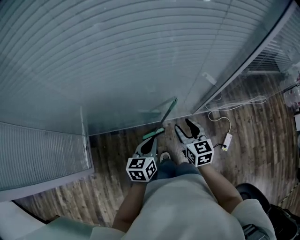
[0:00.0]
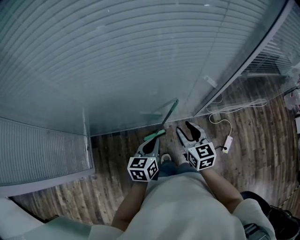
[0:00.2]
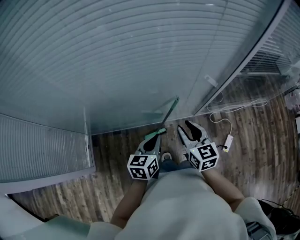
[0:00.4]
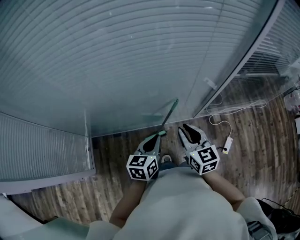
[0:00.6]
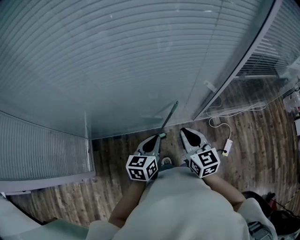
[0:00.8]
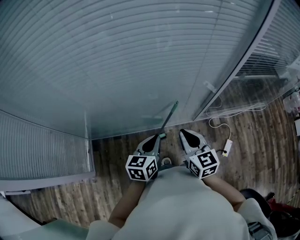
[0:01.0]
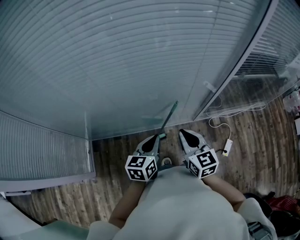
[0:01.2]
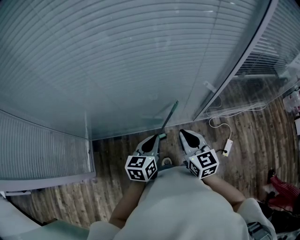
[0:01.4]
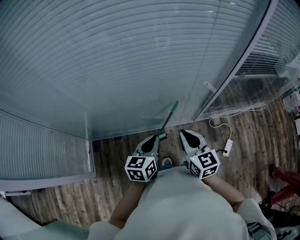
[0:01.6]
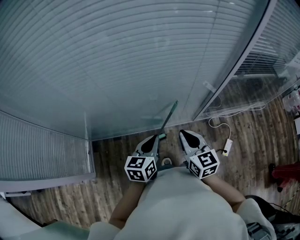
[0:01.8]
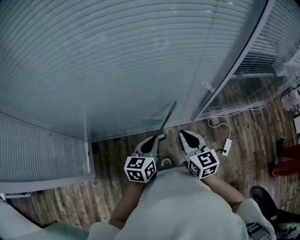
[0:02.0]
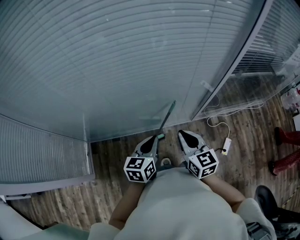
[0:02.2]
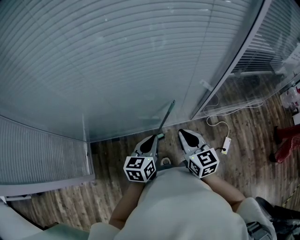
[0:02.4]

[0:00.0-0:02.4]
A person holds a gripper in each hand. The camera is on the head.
0:00.0 to 0:01.2: The left gripper travels upward by some 5 cm. The right gripper heads upward and backward, covering roughly 10 cm, and closes up.
0:01.2 to 0:02.4: The two grippers keep their place.

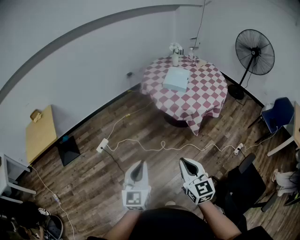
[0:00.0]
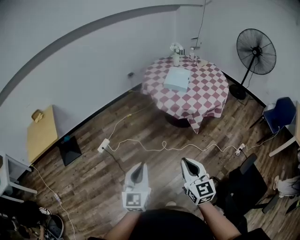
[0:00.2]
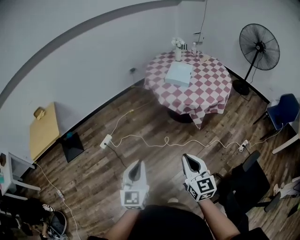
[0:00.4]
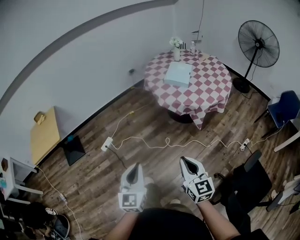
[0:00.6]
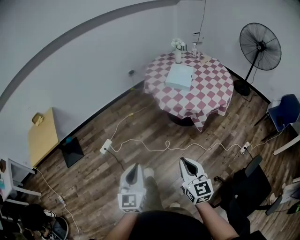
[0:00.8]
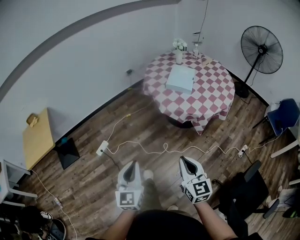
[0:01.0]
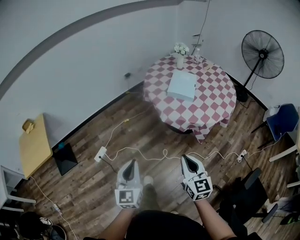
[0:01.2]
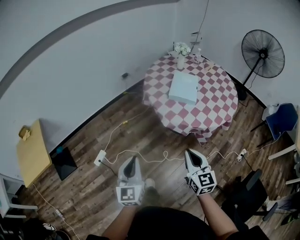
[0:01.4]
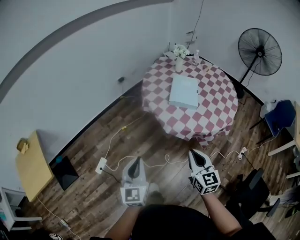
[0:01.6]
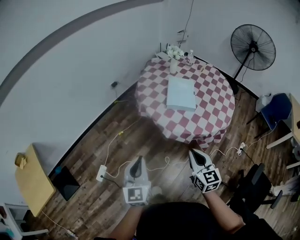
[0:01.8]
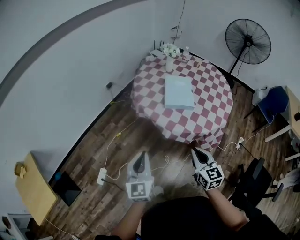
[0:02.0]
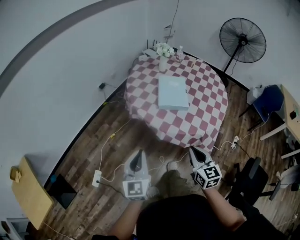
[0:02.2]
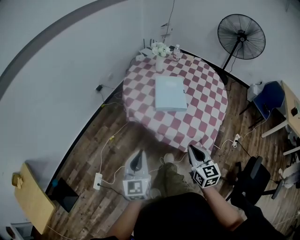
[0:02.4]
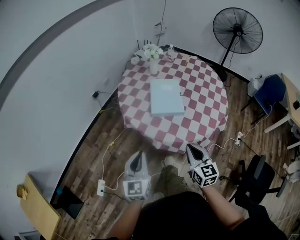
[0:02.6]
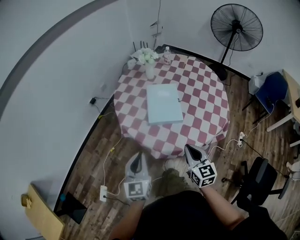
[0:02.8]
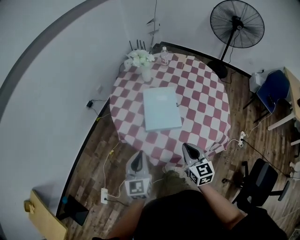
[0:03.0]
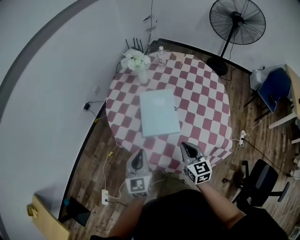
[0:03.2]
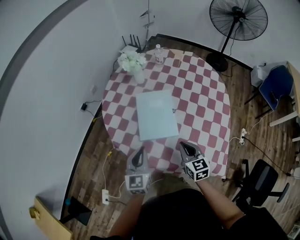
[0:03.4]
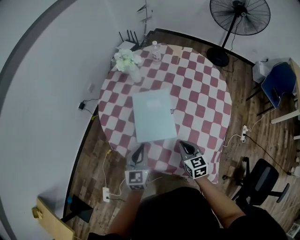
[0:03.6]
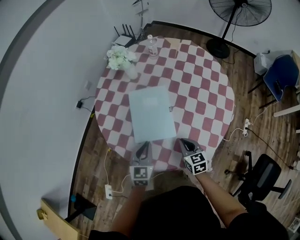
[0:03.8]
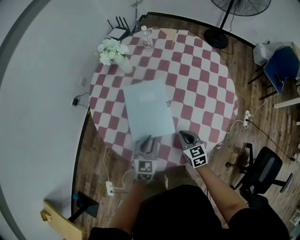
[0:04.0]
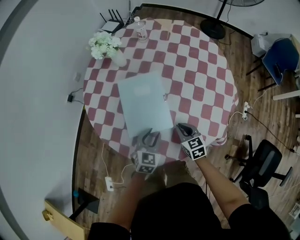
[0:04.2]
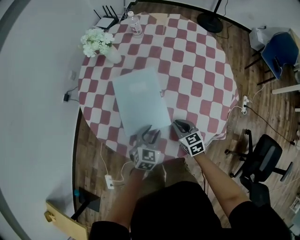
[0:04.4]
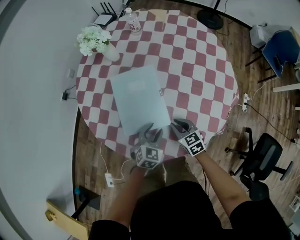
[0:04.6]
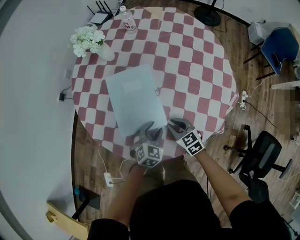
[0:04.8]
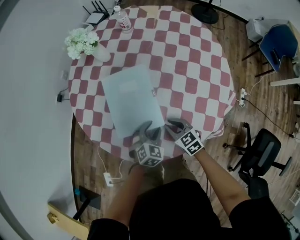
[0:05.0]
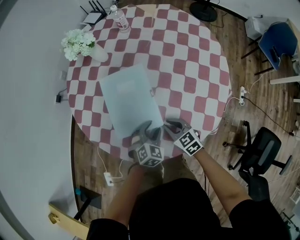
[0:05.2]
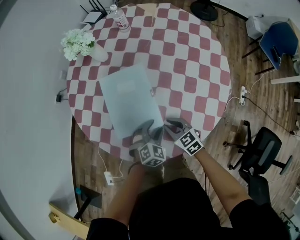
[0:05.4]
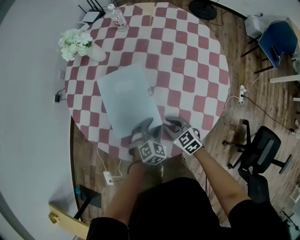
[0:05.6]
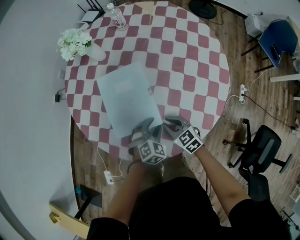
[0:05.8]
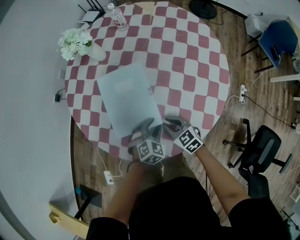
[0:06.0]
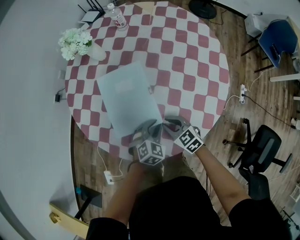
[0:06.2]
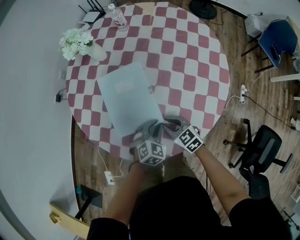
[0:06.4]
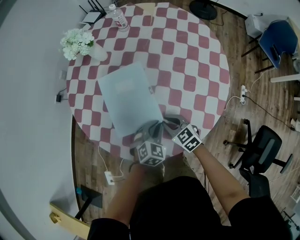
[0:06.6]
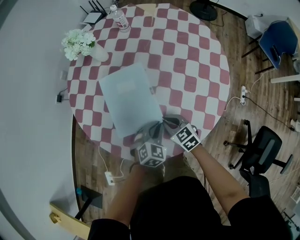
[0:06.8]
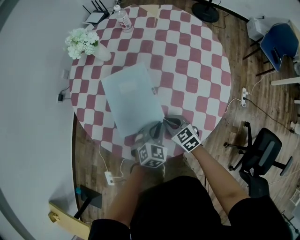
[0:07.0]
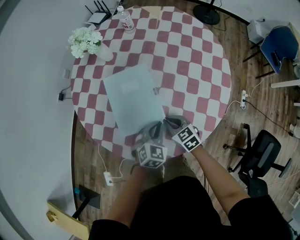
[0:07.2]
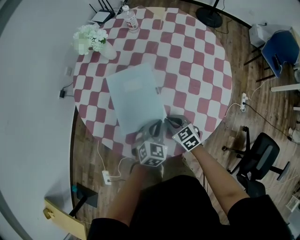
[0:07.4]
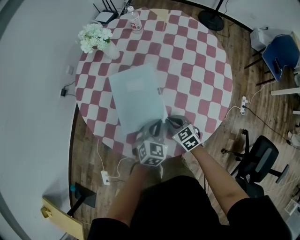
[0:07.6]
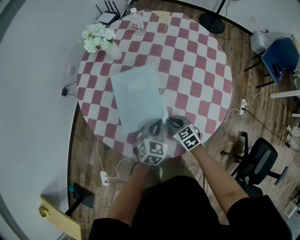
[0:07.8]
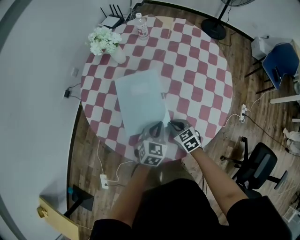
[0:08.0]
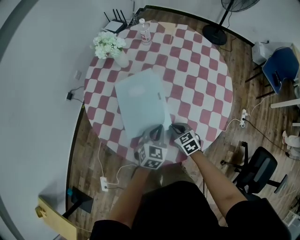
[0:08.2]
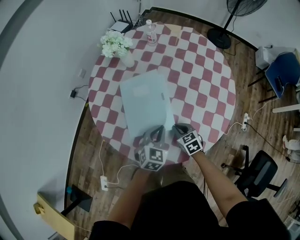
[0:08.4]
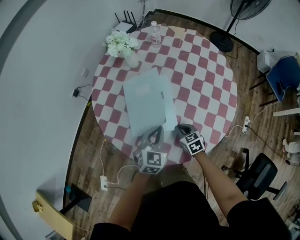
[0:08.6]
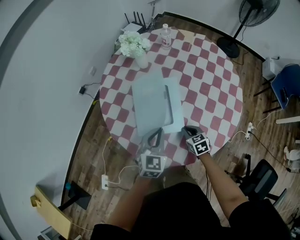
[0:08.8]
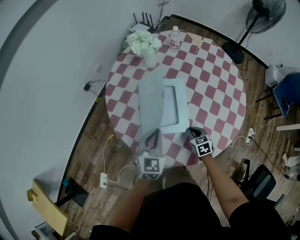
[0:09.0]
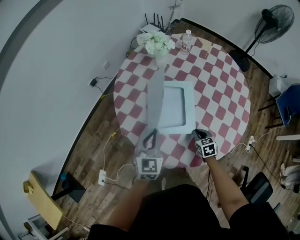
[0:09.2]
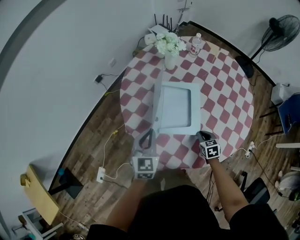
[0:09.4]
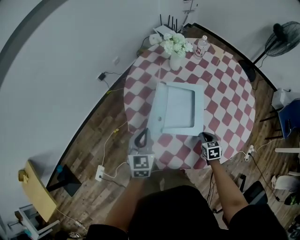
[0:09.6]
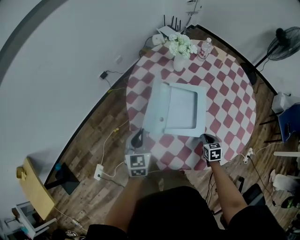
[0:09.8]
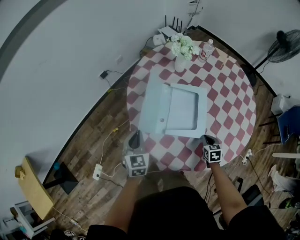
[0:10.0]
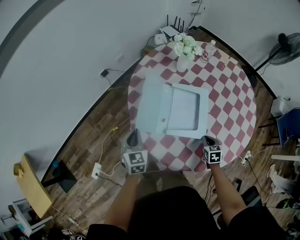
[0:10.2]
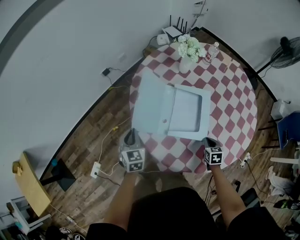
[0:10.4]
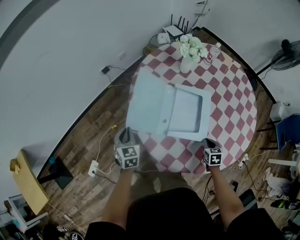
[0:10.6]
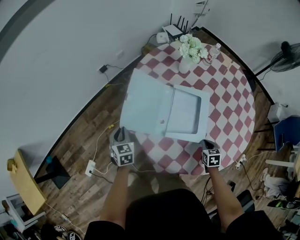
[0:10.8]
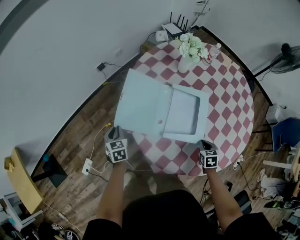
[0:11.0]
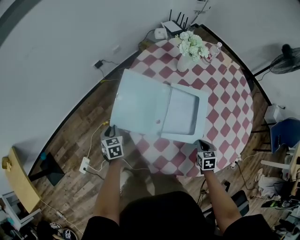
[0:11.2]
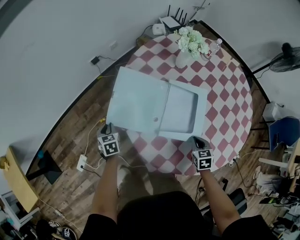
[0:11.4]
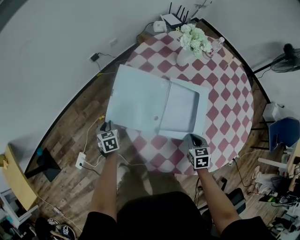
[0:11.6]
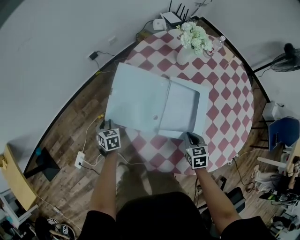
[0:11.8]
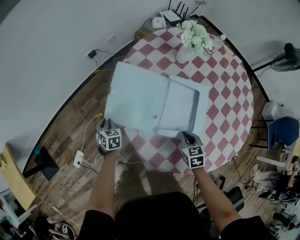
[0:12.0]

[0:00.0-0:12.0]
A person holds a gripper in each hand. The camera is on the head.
0:00.0 to 0:01.6: The two grippers go approximately 40 cm forward.
0:01.6 to 0:03.0: The grippers both shift forward by roughly 35 cm.
0:03.0 to 0:04.4: The left gripper heads downward, forward and to the right, covering about 35 cm, points its fingers about 30 degrees further downward, and opens. The right gripper shifts some 30 cm downward and forward, and turns by some 20 degrees.
0:04.4 to 0:06.0: The left gripper goes about 5 cm to the right, and rotates approximately 20 degrees.
0:06.0 to 0:07.6: The left gripper goes some 10 cm upward, and closes its fingers.
0:07.6 to 0:09.0: The left gripper goes approximately 20 cm to the left and upward, and rotates roughly 30 degrees.
0:09.0 to 0:10.4: The left gripper shifts approximately 25 cm to the left, and turns by about 30 degrees.
0:10.4 to 0:12.0: The right gripper moves to the left and forward, some 10 cm. Meanwhile the left gripper is displaced downward and to the left by approximately 20 cm, and swivels about 20 degrees.

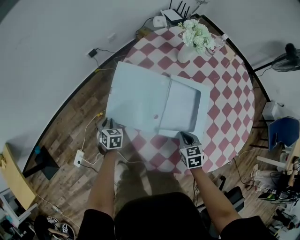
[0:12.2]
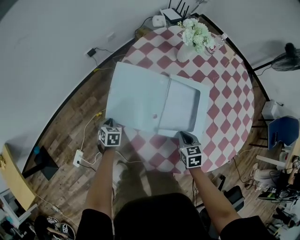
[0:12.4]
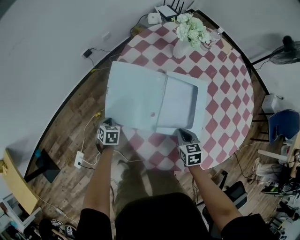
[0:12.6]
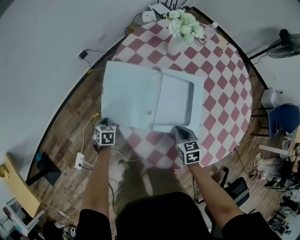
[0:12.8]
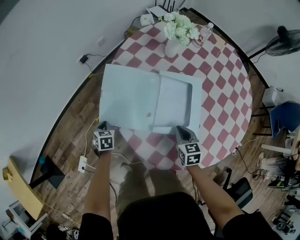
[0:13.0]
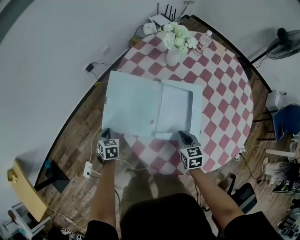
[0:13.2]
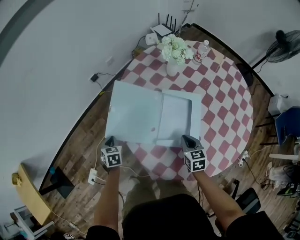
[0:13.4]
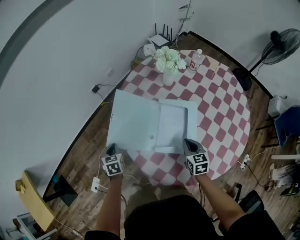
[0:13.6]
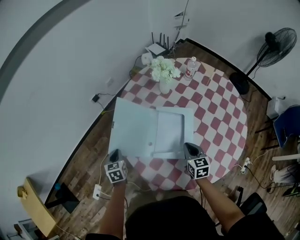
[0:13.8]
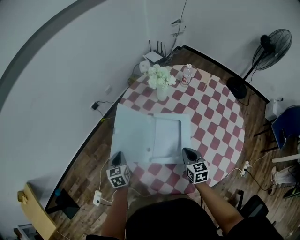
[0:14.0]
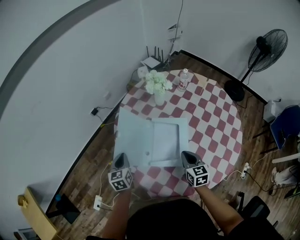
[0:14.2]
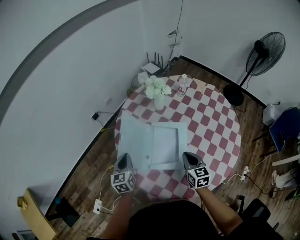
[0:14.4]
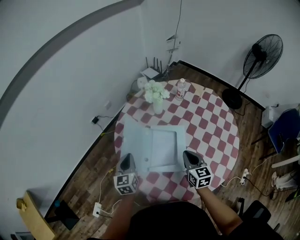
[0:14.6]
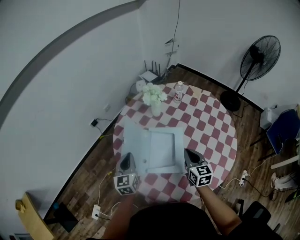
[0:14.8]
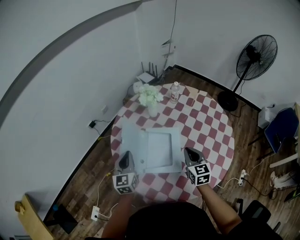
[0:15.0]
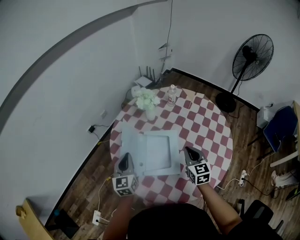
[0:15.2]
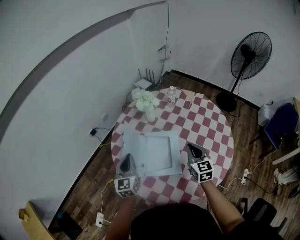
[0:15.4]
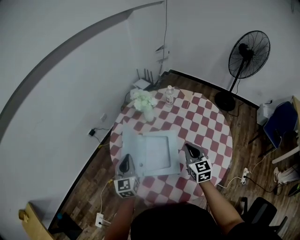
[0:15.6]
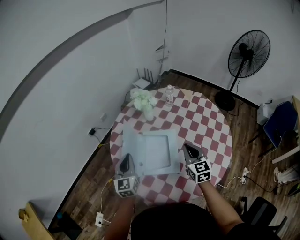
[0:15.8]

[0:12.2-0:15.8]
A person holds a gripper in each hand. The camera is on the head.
0:12.2 to 0:14.0: Both grippers move upward and to the right, roughly 20 cm. The left gripper turns by roughly 30 degrees. The right gripper turns by some 20 degrees.
0:14.0 to 0:15.8: The grippers both shift upward and to the right by roughly 20 cm. The left gripper changes its angle by approximately 30 degrees.

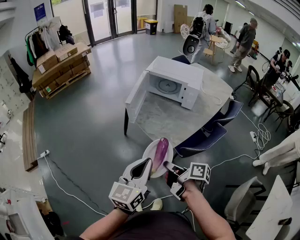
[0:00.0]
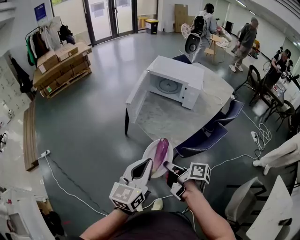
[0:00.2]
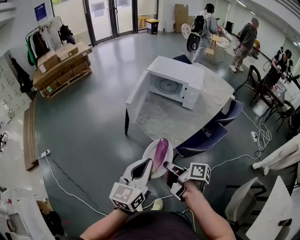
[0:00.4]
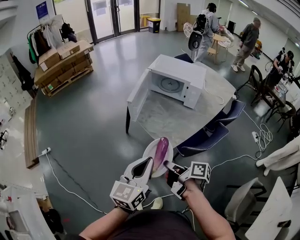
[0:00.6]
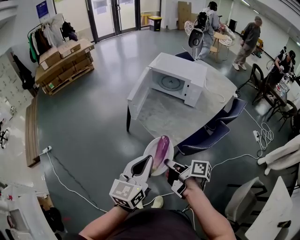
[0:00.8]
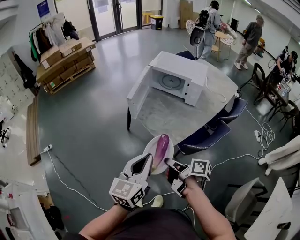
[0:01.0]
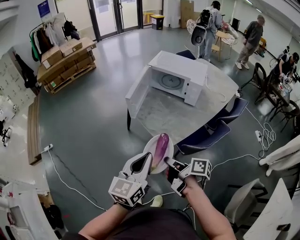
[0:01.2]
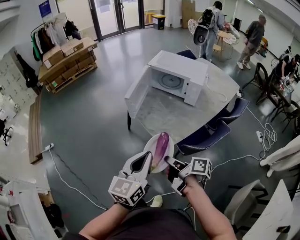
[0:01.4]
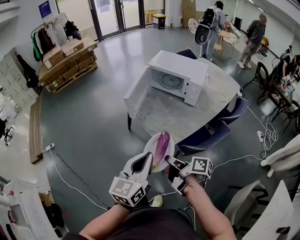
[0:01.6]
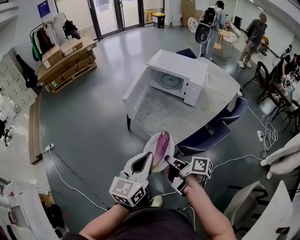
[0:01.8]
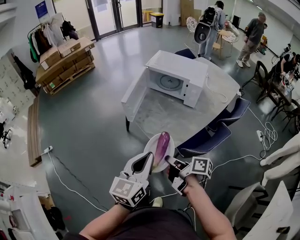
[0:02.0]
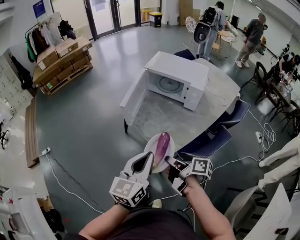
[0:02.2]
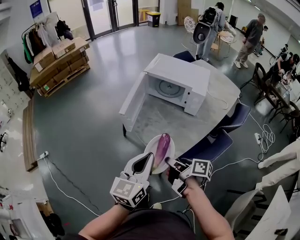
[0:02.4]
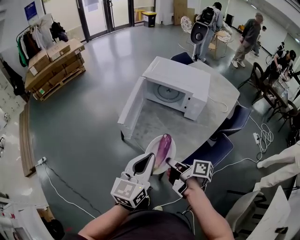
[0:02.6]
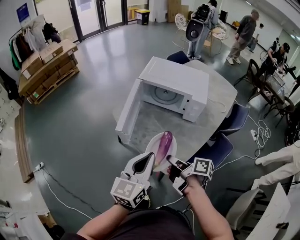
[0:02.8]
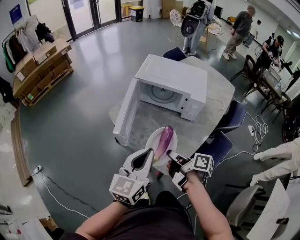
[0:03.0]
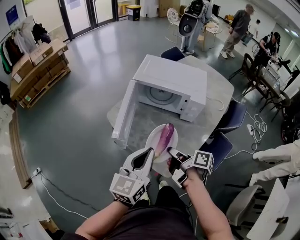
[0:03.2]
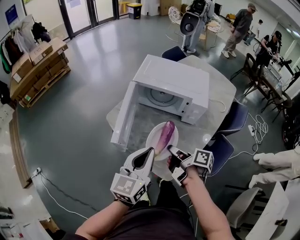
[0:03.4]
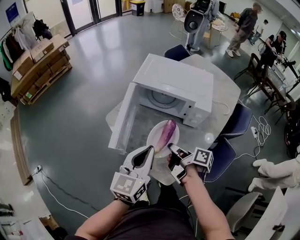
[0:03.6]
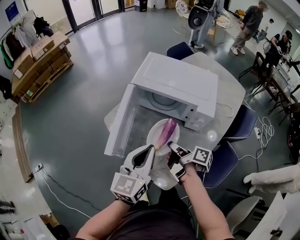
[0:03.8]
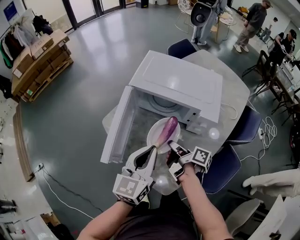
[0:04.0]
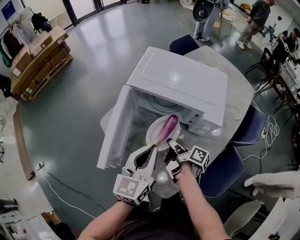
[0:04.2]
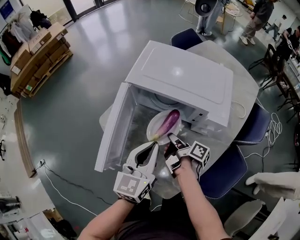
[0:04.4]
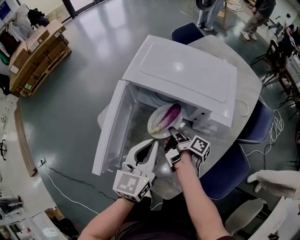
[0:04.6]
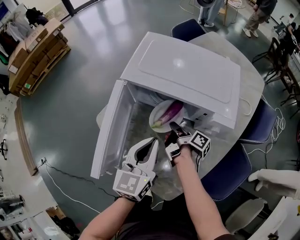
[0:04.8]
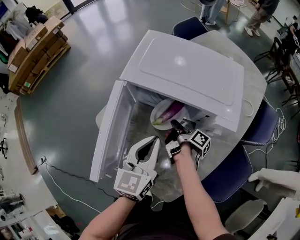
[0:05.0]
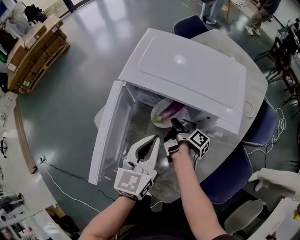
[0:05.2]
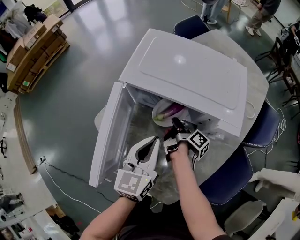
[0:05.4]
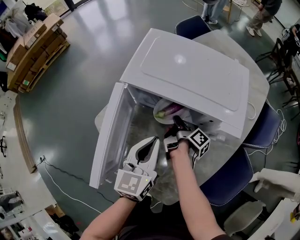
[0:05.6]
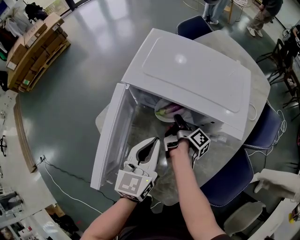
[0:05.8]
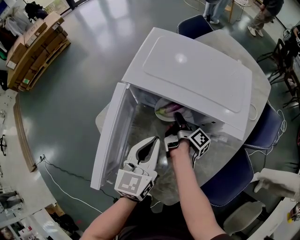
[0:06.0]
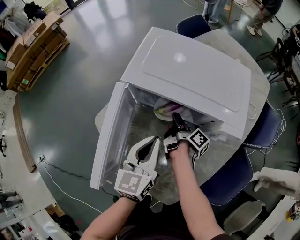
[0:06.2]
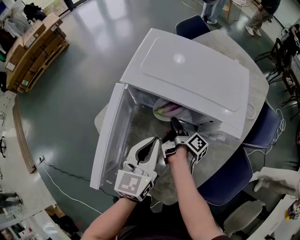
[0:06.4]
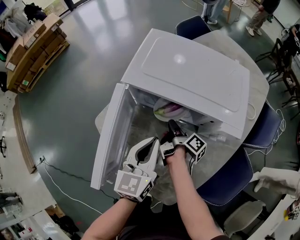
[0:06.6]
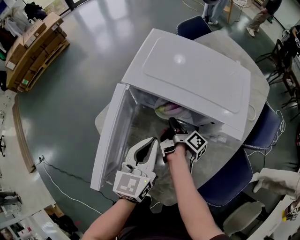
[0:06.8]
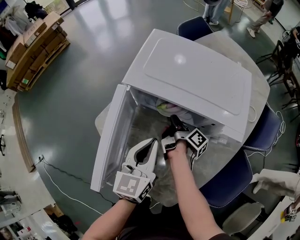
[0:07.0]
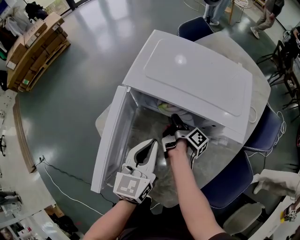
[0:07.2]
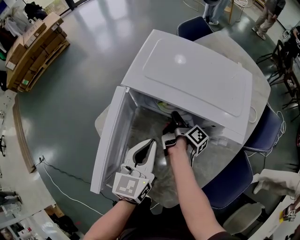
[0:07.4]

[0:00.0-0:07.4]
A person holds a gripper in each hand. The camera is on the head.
0:01.4 to 0:03.0: The left gripper changes place by about 25 cm.
0:03.0 to 0:04.4: The left gripper shifts by about 25 cm.
0:04.4 to 0:06.0: The left gripper moves roughly 10 cm.
